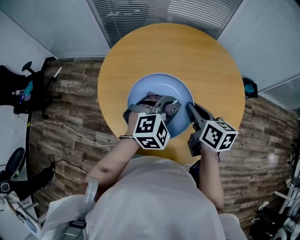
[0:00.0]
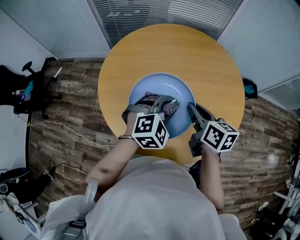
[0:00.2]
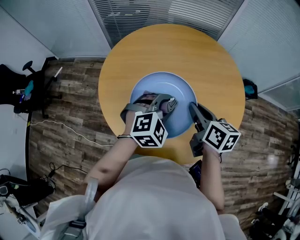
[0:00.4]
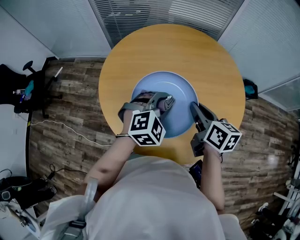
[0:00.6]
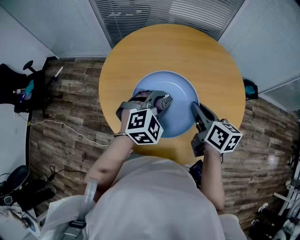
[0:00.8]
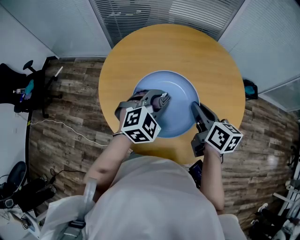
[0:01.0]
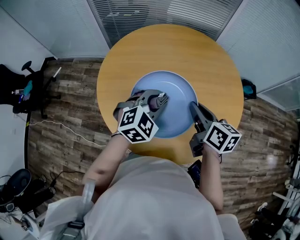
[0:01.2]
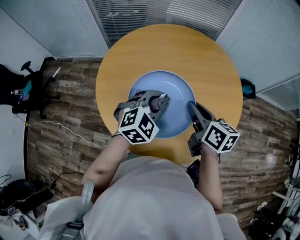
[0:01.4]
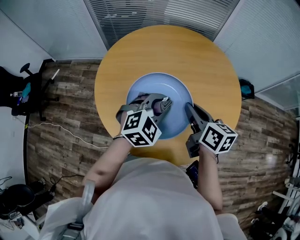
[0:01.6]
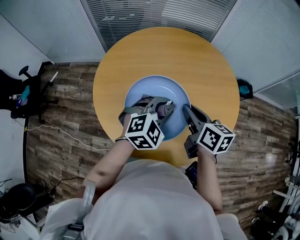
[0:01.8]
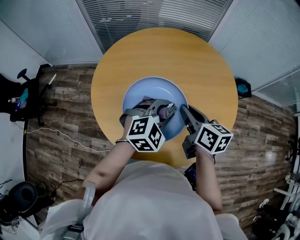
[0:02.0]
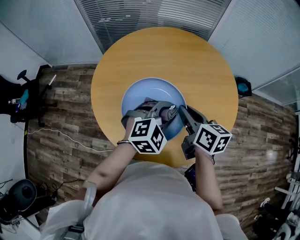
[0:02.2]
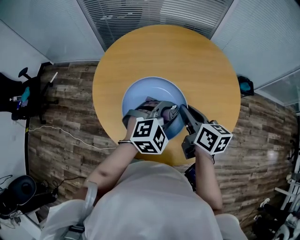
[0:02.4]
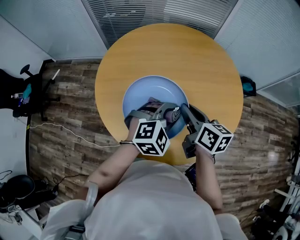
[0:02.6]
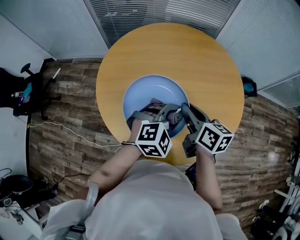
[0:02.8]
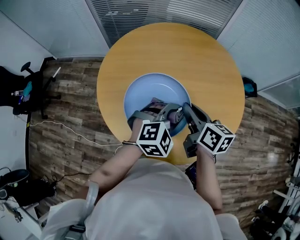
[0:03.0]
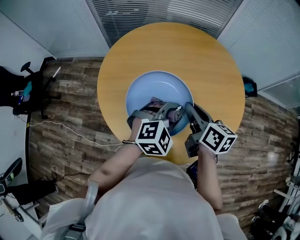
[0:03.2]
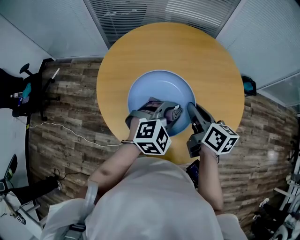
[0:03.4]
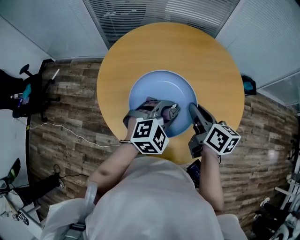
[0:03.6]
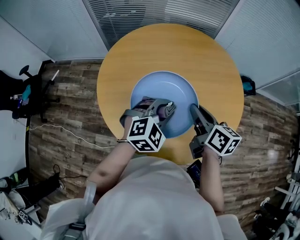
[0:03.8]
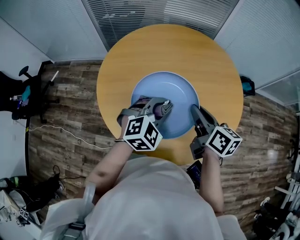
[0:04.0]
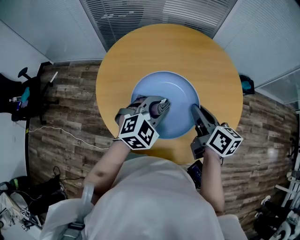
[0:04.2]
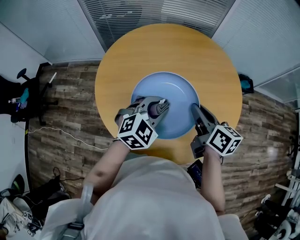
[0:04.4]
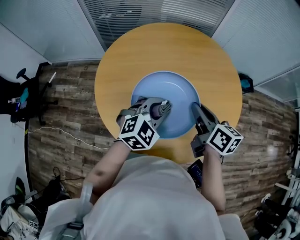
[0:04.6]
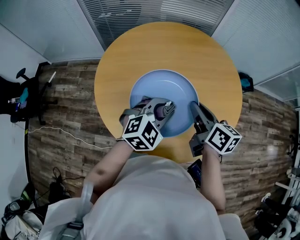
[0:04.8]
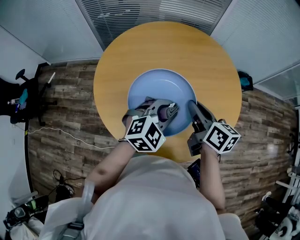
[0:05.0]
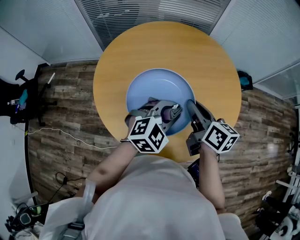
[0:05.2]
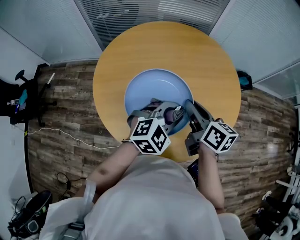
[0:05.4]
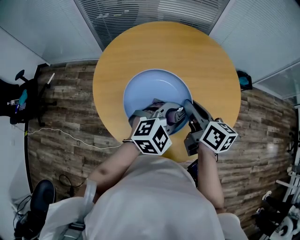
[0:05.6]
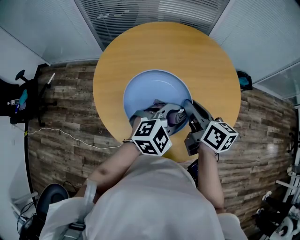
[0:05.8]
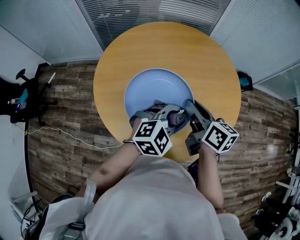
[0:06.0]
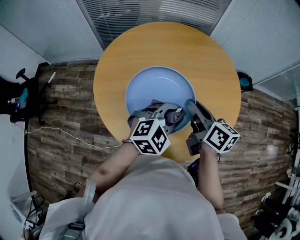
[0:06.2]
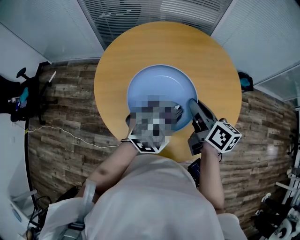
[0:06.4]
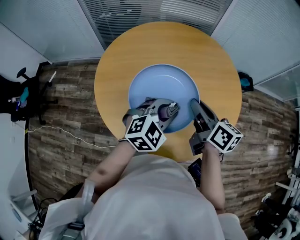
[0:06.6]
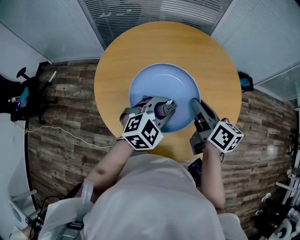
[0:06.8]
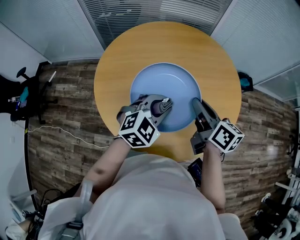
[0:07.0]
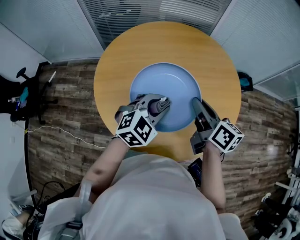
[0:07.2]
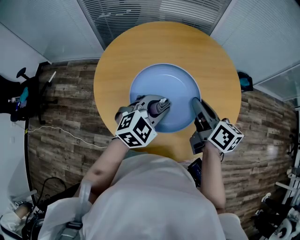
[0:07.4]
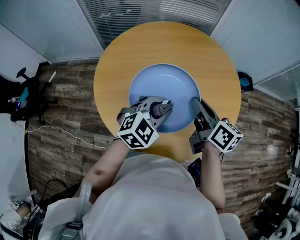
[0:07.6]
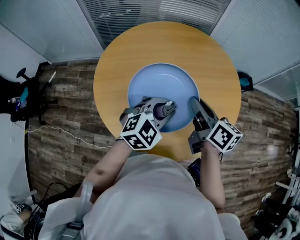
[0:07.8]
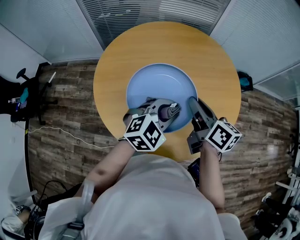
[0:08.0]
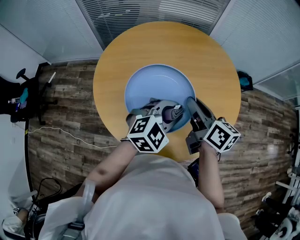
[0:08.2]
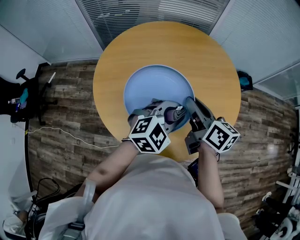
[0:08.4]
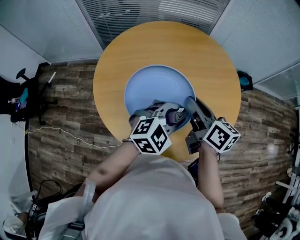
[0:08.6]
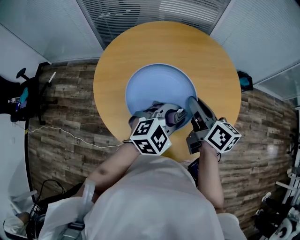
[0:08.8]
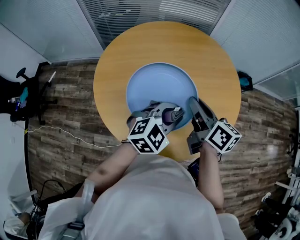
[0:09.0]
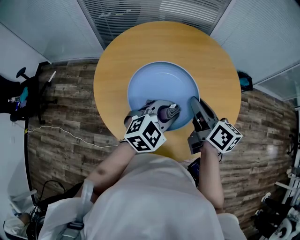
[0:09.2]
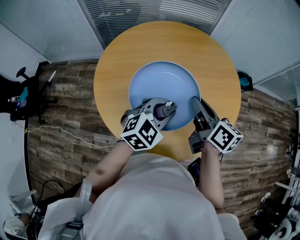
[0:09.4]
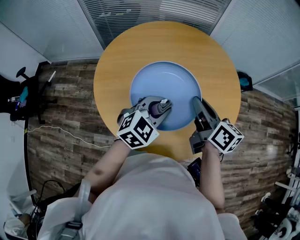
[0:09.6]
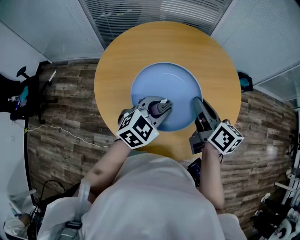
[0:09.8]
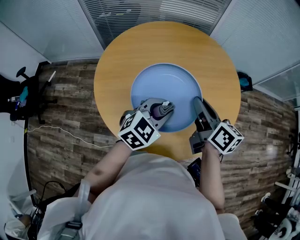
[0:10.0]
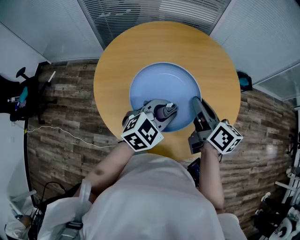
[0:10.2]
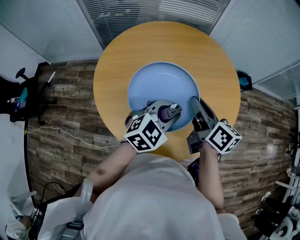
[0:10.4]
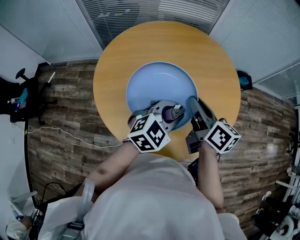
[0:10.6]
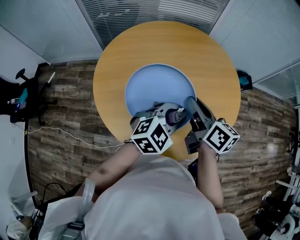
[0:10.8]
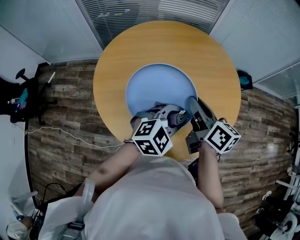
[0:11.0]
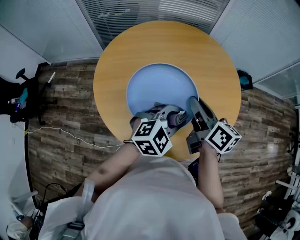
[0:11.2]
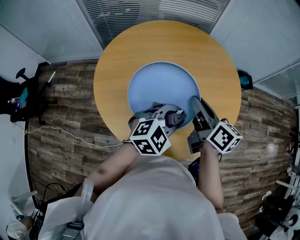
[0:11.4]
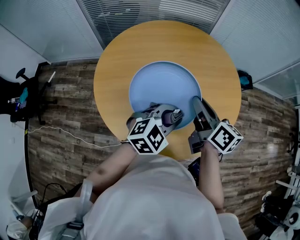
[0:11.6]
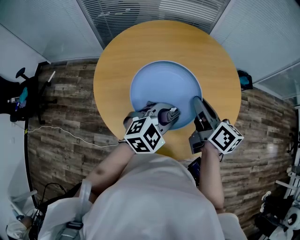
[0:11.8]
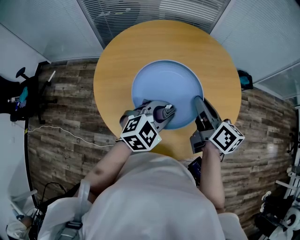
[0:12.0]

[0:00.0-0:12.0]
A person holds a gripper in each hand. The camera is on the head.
0:00.0 to 0:01.6: The grippers stay close to where they were, moving slightly.
0:01.6 to 0:03.0: The left gripper changes place by roughly 5 cm.
0:03.0 to 0:04.4: The left gripper is displaced to the left by roughly 5 cm.
0:04.4 to 0:06.0: The left gripper moves to the right, roughly 10 cm.
0:06.0 to 0:07.6: The left gripper heads to the left, covering roughly 5 cm.
0:07.6 to 0:10.4: The grippers move only a little.
0:10.4 to 0:12.0: The grippers make only small movements.

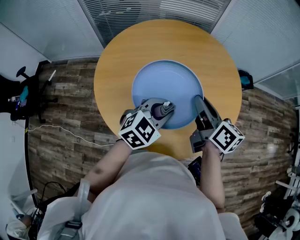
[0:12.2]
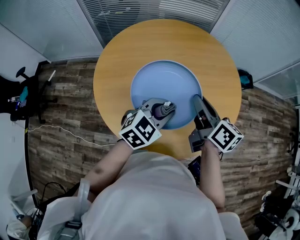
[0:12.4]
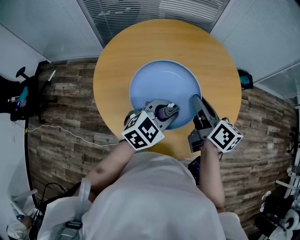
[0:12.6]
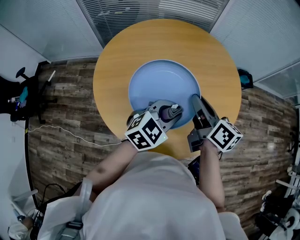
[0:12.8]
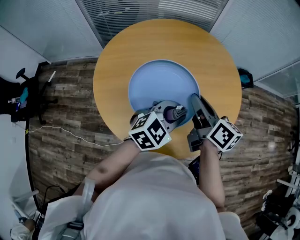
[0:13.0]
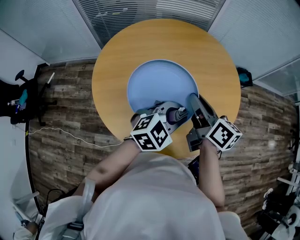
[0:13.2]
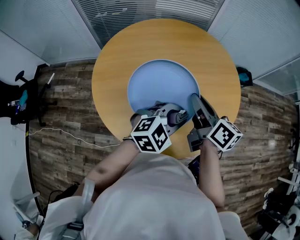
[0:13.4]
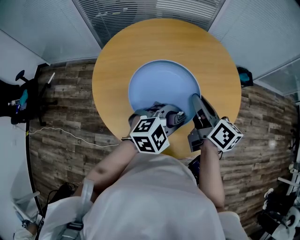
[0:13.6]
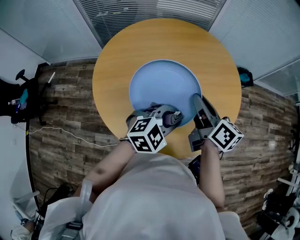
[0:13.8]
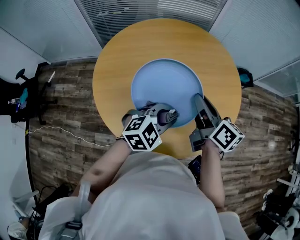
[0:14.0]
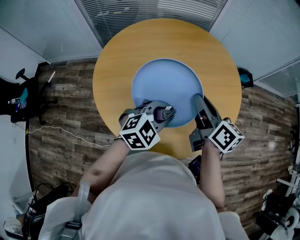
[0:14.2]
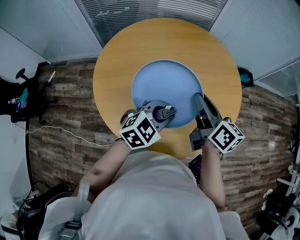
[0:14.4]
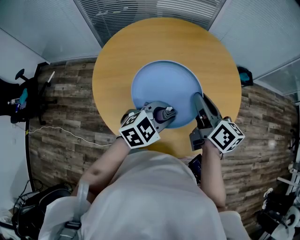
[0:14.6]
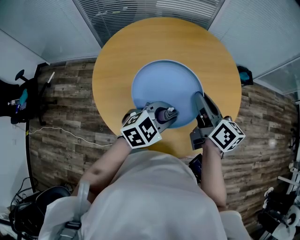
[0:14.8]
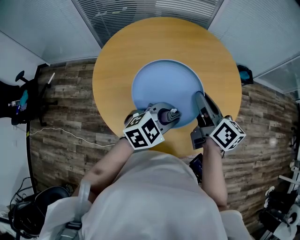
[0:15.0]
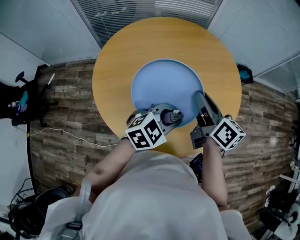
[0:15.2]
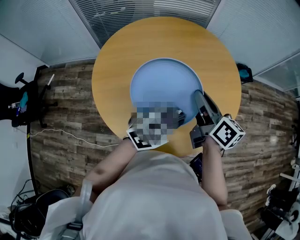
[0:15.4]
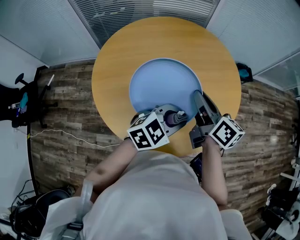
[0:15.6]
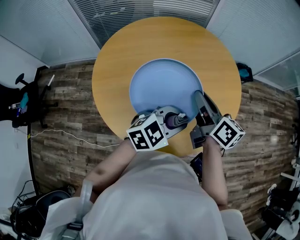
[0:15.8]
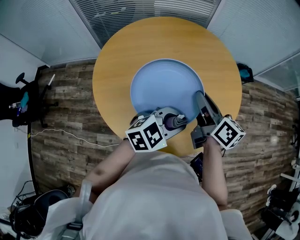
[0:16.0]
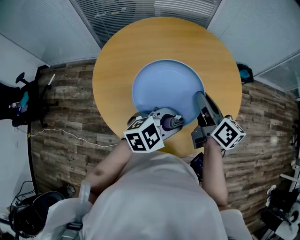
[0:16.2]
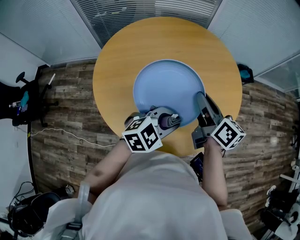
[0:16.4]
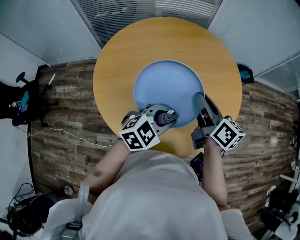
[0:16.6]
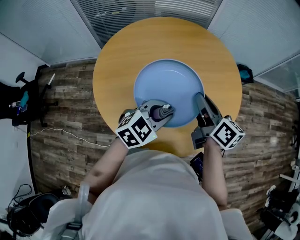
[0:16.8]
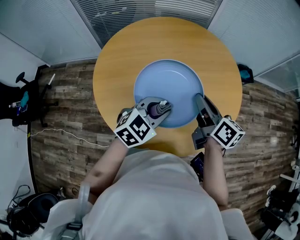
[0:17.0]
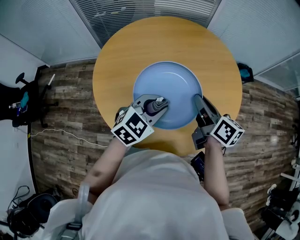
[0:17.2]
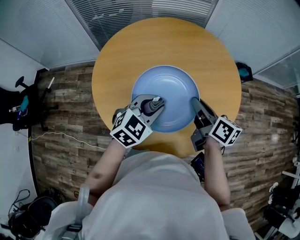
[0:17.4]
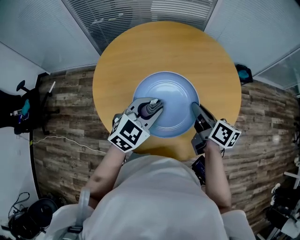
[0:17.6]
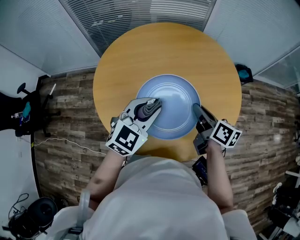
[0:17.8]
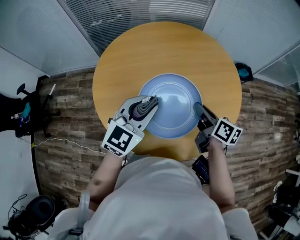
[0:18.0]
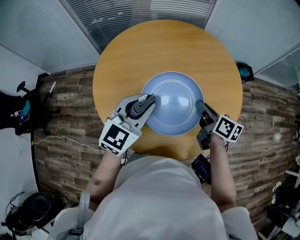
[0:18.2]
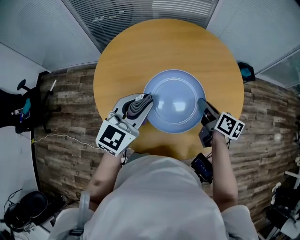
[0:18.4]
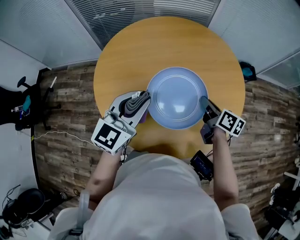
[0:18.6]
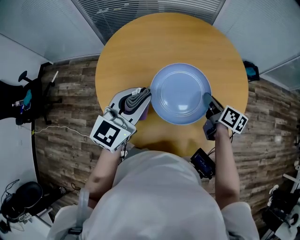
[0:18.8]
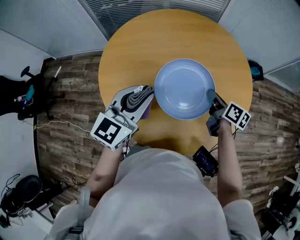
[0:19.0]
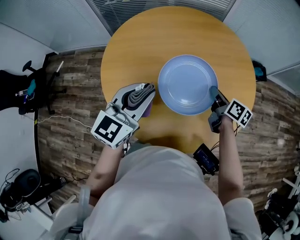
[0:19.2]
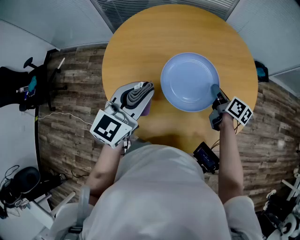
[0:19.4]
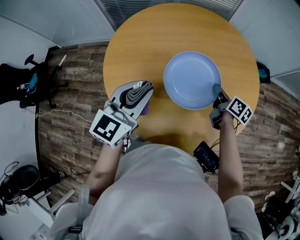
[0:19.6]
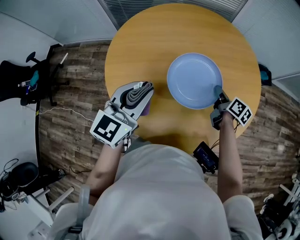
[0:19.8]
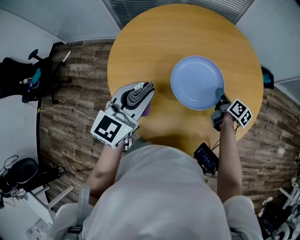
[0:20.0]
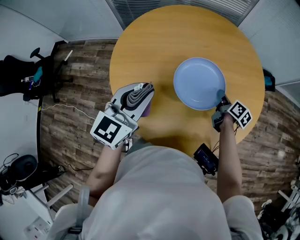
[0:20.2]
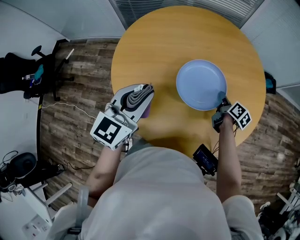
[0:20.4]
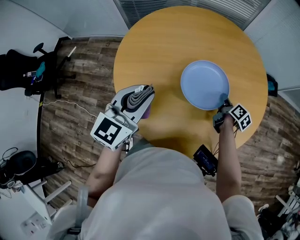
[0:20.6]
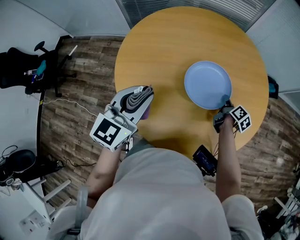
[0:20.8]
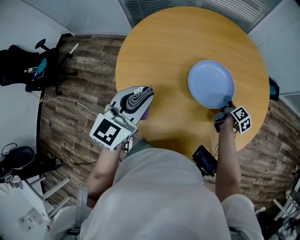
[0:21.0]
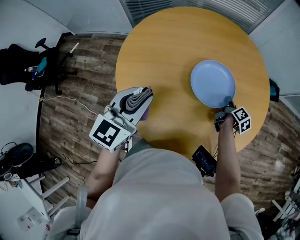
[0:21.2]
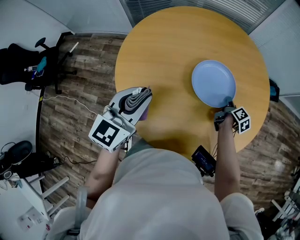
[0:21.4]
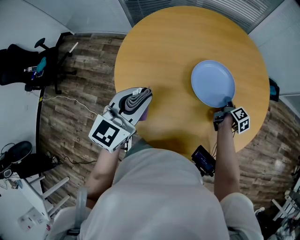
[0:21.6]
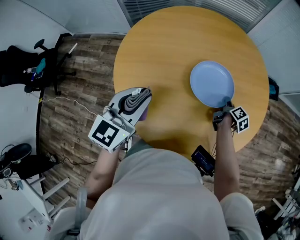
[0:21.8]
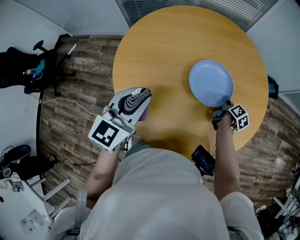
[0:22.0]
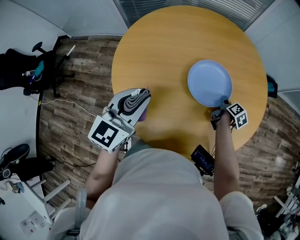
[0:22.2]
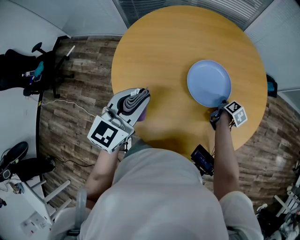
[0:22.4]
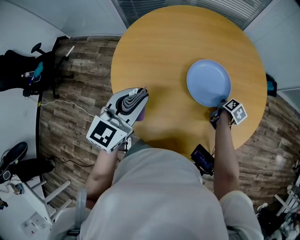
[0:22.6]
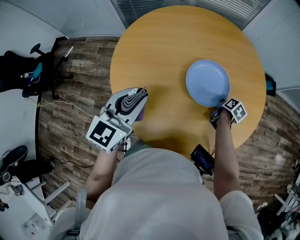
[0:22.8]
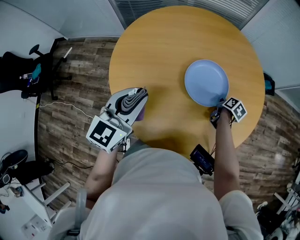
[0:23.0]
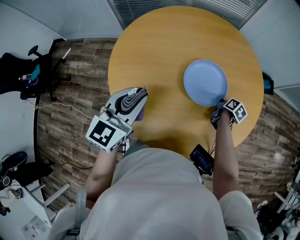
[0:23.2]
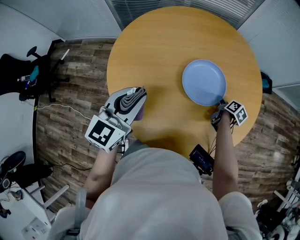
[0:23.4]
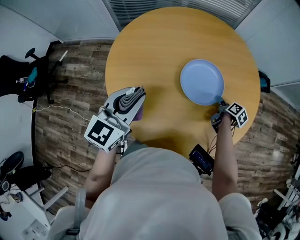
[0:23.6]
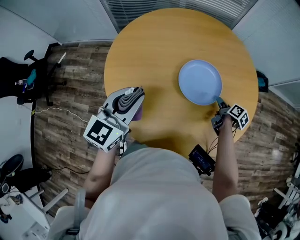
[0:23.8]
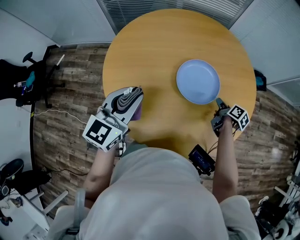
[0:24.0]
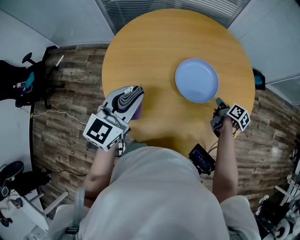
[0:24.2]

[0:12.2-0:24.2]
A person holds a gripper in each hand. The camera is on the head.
0:12.2 to 0:13.8: The left gripper goes some 5 cm to the right.
0:13.8 to 0:16.6: There are only small adjustments of the grippers.
0:16.6 to 0:18.2: The right gripper shifts roughly 10 cm downward; the left gripper moves to the left and upward, some 10 cm, and swivels about 30 degrees.
0:18.2 to 0:19.8: The left gripper travels to the left by about 5 cm, while the right gripper is displaced downward and forward by about 15 cm.
0:19.8 to 0:21.2: The right gripper is displaced downward by about 10 cm, and rotates approximately 20 degrees. Meanwhile the left gripper ends up approximately 5 cm from where it was.
0:21.2 to 0:22.6: There are only small adjustments of the grippers.
0:22.6 to 0:24.2: The right gripper travels upward by some 5 cm, and opens, then closes again.
